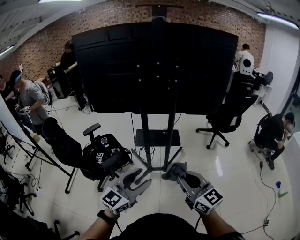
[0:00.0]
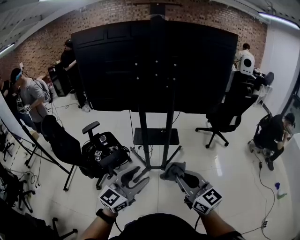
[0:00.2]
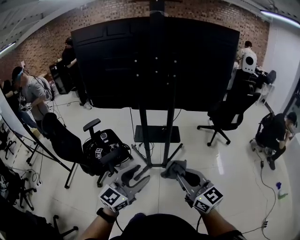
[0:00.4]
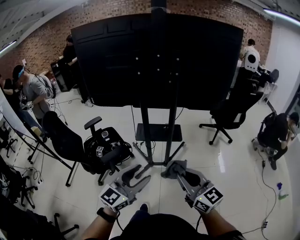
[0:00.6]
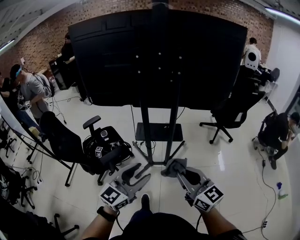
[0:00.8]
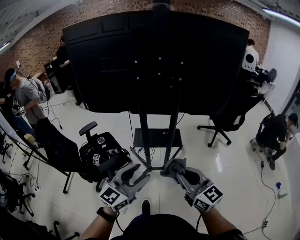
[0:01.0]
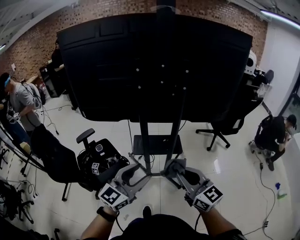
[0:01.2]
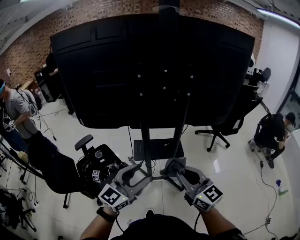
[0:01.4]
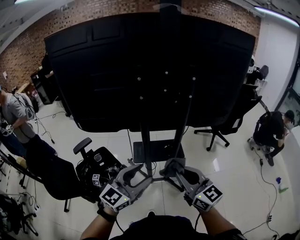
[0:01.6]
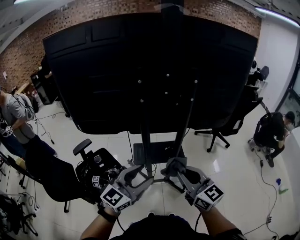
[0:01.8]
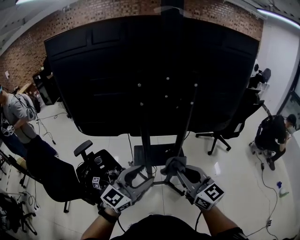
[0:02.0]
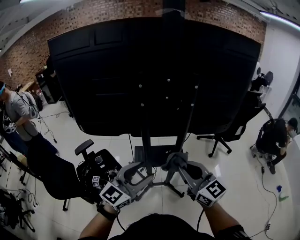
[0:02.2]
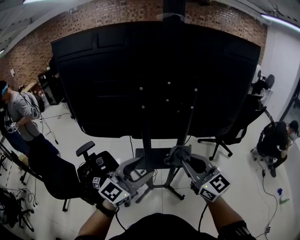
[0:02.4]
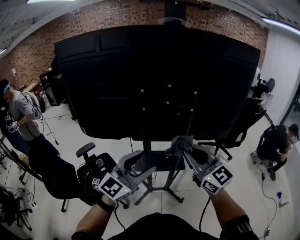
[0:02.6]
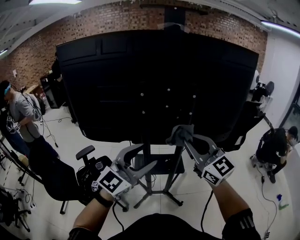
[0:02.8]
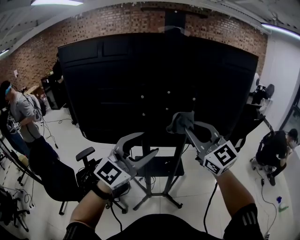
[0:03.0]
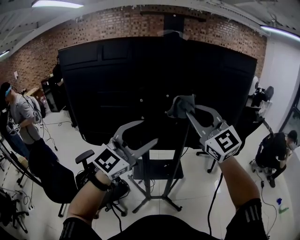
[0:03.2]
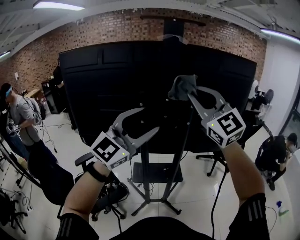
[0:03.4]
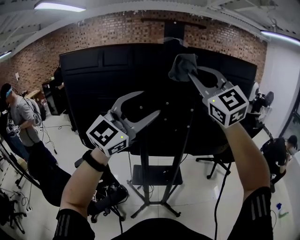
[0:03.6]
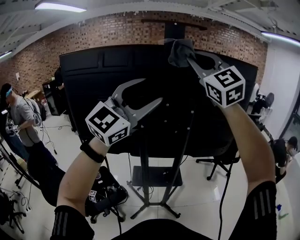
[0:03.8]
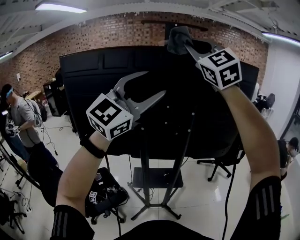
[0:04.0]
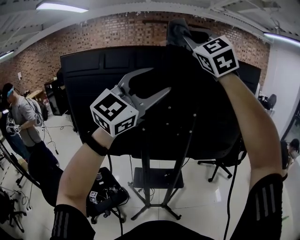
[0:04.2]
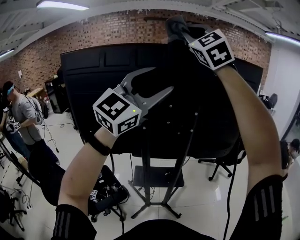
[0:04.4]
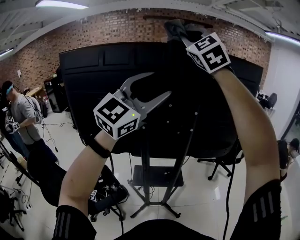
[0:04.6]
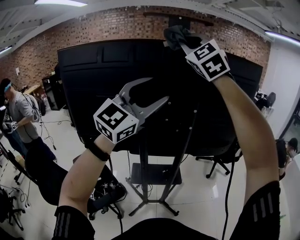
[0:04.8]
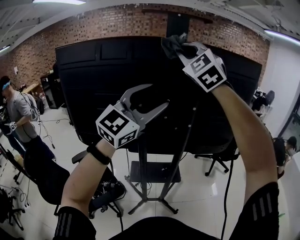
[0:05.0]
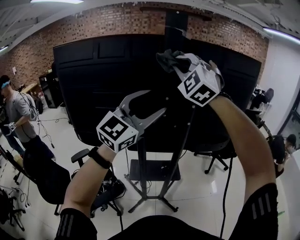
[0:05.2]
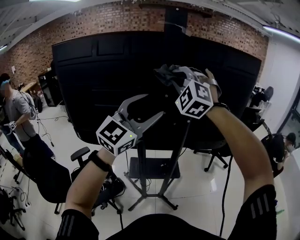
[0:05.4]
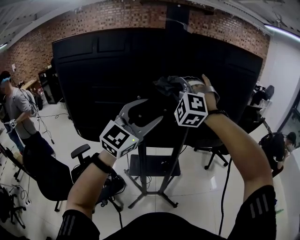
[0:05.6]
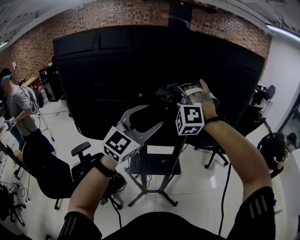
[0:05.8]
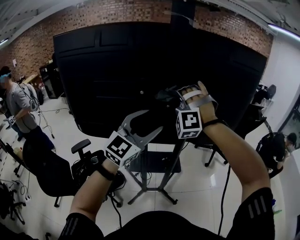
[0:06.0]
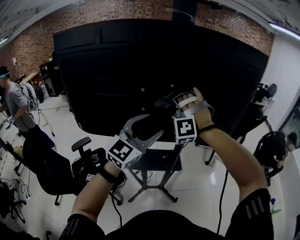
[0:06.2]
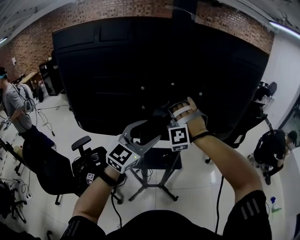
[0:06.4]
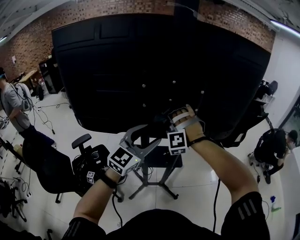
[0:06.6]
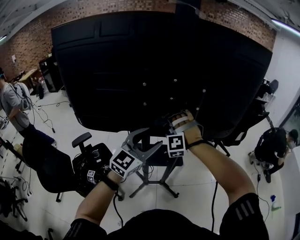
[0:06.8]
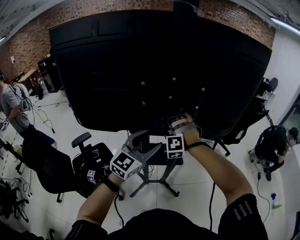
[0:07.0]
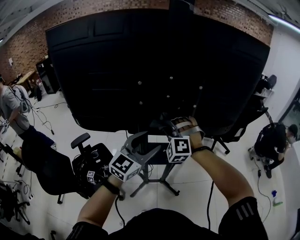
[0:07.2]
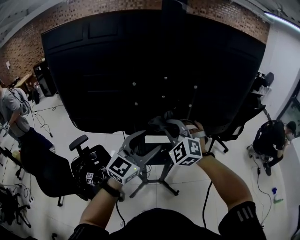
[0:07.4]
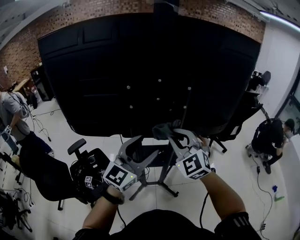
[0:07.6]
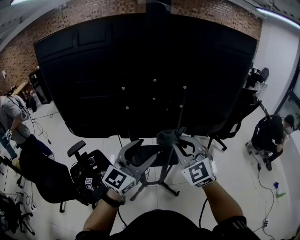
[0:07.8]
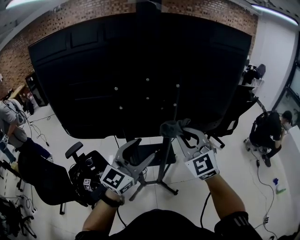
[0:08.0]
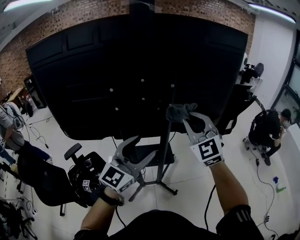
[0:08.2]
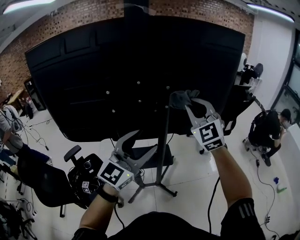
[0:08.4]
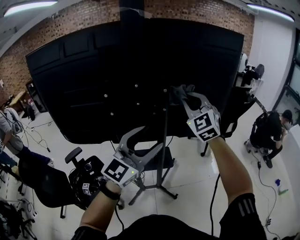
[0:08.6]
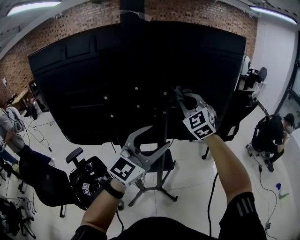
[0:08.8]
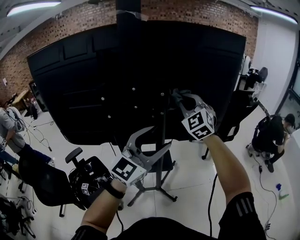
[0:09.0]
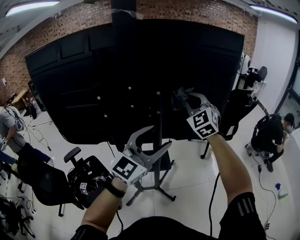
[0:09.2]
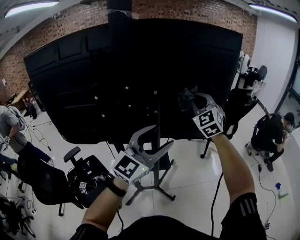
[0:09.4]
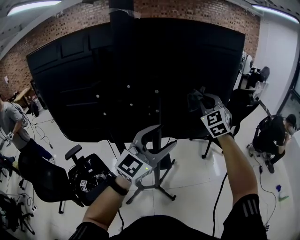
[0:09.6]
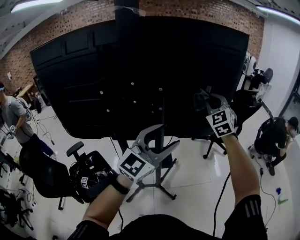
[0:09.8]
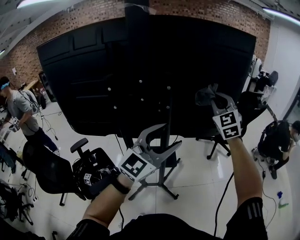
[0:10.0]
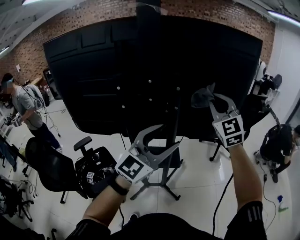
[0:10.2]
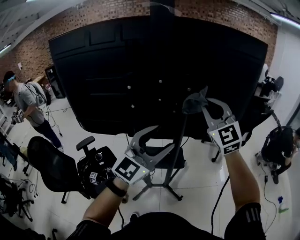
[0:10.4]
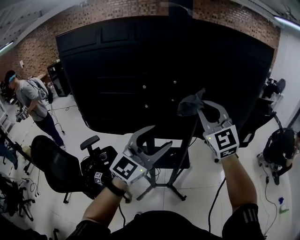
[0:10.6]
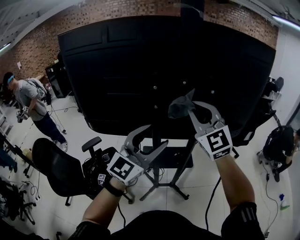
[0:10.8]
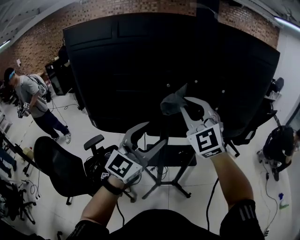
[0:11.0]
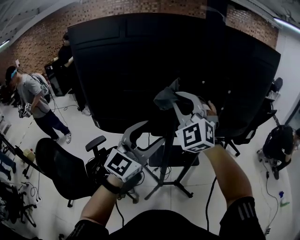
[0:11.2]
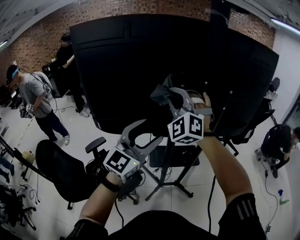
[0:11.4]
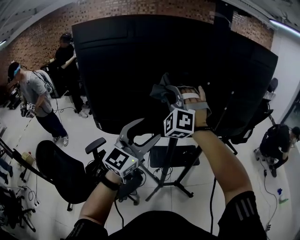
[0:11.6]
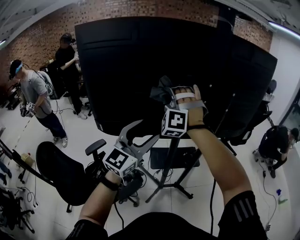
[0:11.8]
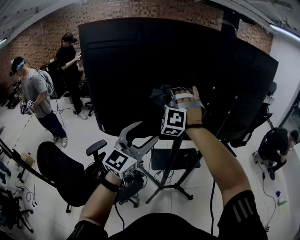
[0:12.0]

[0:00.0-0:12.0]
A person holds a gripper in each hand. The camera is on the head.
0:00.0 to 0:01.6: The grippers both shift forward by some 25 cm.
0:01.6 to 0:03.0: The left gripper goes about 20 cm upward, and changes its angle by some 30 degrees, while the right gripper heads upward and forward, covering approximately 25 cm, and swivels roughly 30 degrees.
0:03.0 to 0:04.4: The left gripper goes approximately 25 cm upward and forward. The right gripper heads upward and forward, covering about 35 cm, and rotates about 40 degrees.
0:04.4 to 0:06.0: The left gripper shifts some 20 cm downward, while the right gripper is displaced downward by about 35 cm, and twists approximately 50 degrees counterclockwise, seen from behind.
0:06.0 to 0:07.6: The right gripper heads backward, downward and to the right, covering approximately 15 cm, and rolls clockwise, seen from behind, by approximately 60 degrees. The left gripper heads downward, covering some 10 cm.
0:07.6 to 0:09.0: The right gripper heads forward, to the right and upward, covering roughly 20 cm; the left gripper travels to the right and upward by about 15 cm.
0:09.0 to 0:10.4: The right gripper heads backward, covering about 10 cm; the left gripper travels to the left by some 5 cm.
0:10.4 to 0:12.0: The grippers both shift to the left by some 35 cm. The right gripper rotates around the line of its fingers by approximately 60 degrees, counterclockwise from behind.

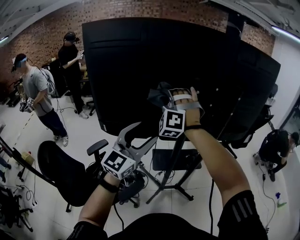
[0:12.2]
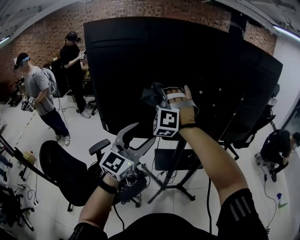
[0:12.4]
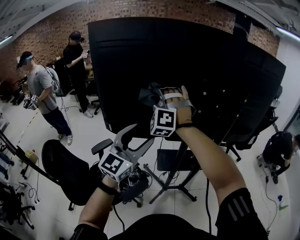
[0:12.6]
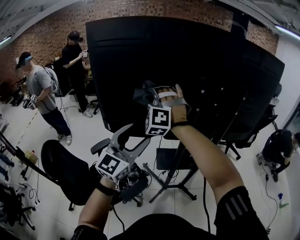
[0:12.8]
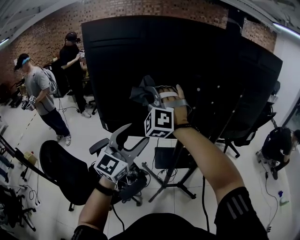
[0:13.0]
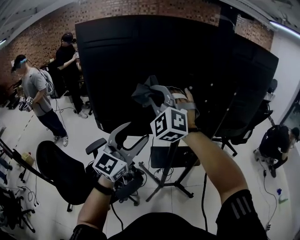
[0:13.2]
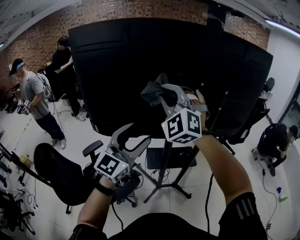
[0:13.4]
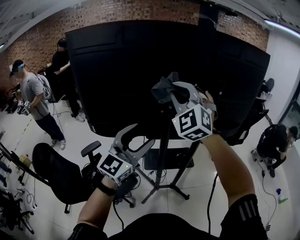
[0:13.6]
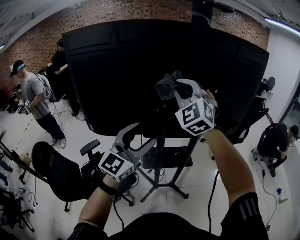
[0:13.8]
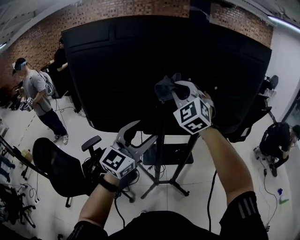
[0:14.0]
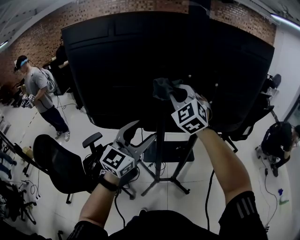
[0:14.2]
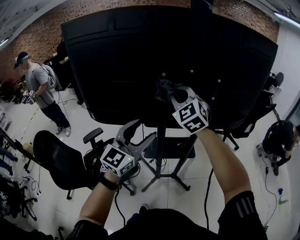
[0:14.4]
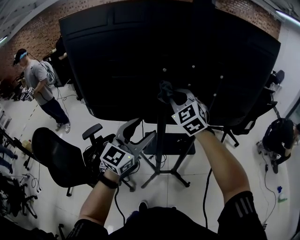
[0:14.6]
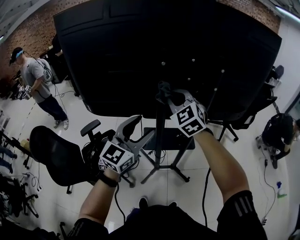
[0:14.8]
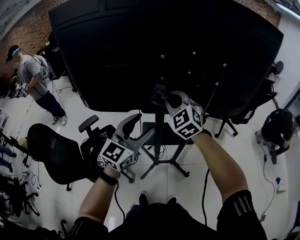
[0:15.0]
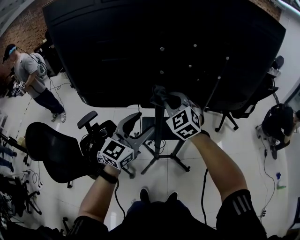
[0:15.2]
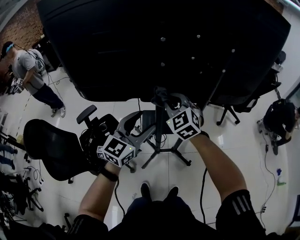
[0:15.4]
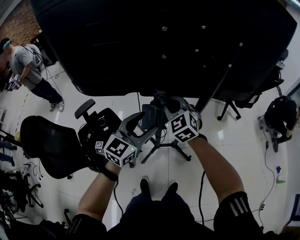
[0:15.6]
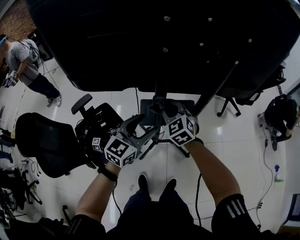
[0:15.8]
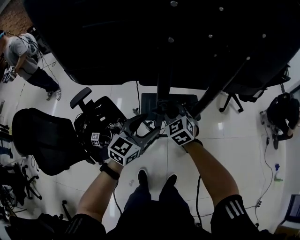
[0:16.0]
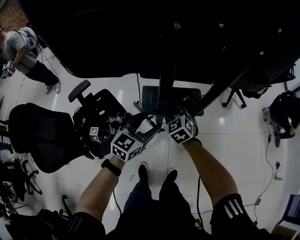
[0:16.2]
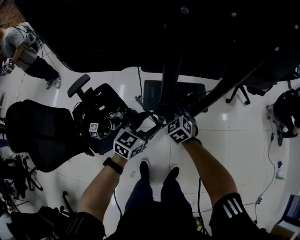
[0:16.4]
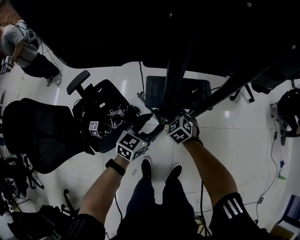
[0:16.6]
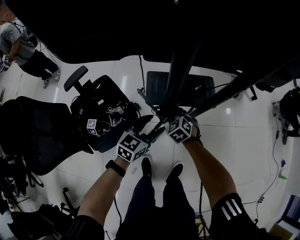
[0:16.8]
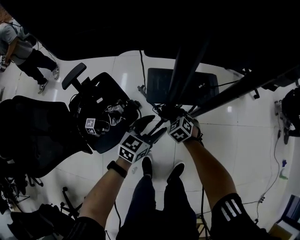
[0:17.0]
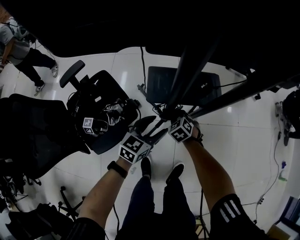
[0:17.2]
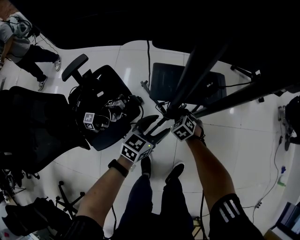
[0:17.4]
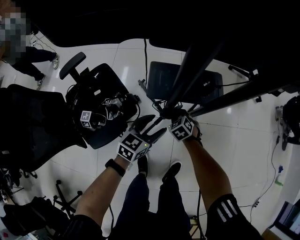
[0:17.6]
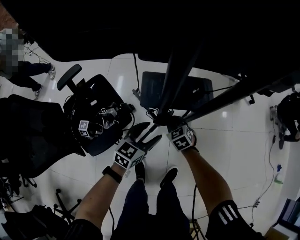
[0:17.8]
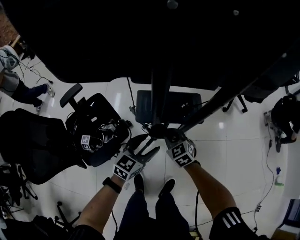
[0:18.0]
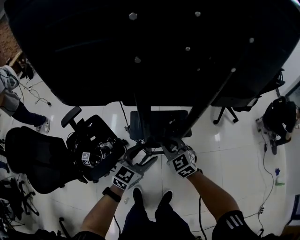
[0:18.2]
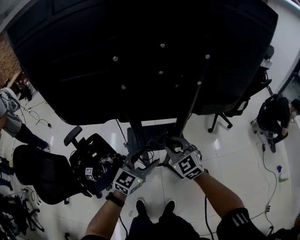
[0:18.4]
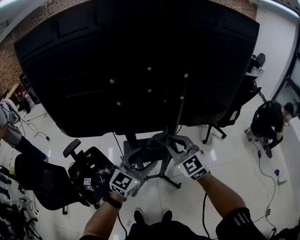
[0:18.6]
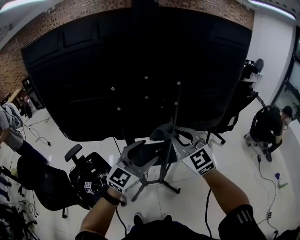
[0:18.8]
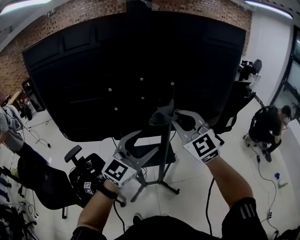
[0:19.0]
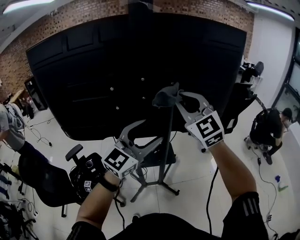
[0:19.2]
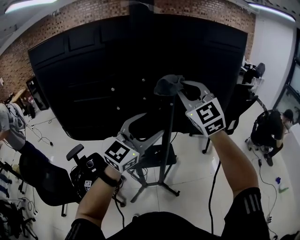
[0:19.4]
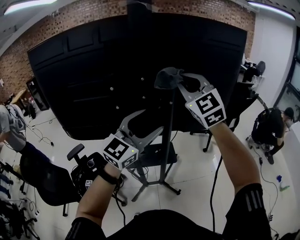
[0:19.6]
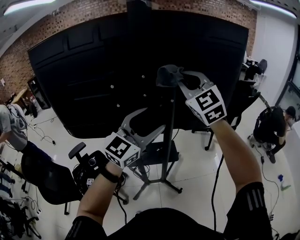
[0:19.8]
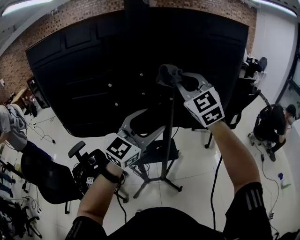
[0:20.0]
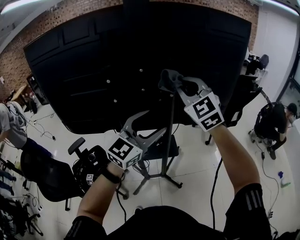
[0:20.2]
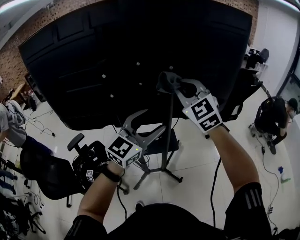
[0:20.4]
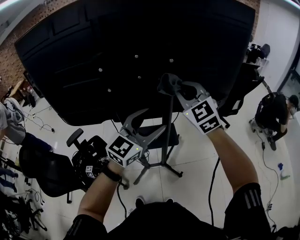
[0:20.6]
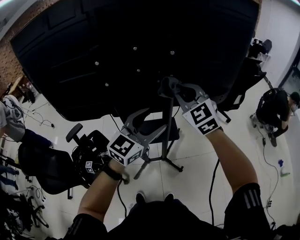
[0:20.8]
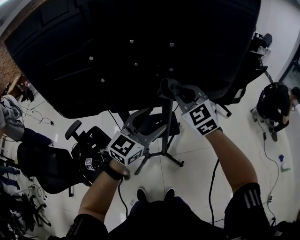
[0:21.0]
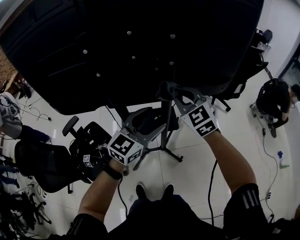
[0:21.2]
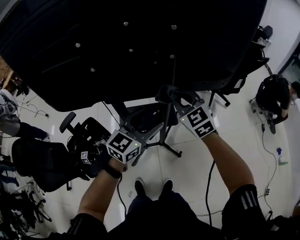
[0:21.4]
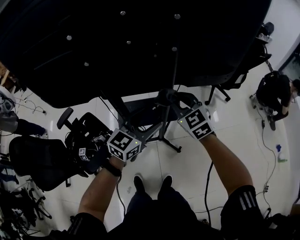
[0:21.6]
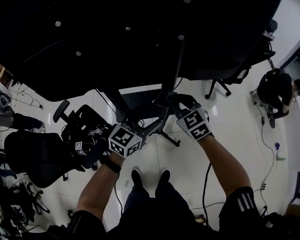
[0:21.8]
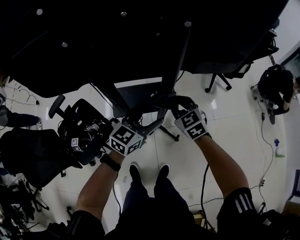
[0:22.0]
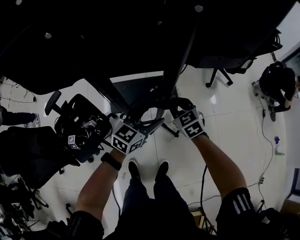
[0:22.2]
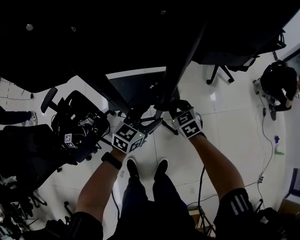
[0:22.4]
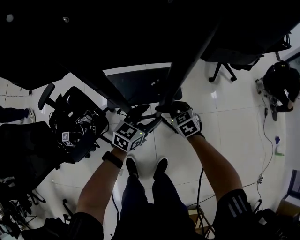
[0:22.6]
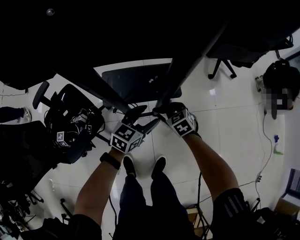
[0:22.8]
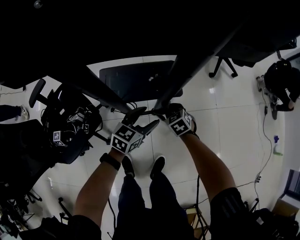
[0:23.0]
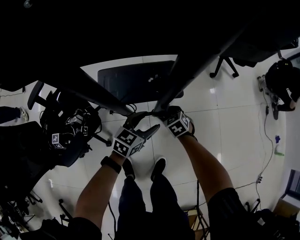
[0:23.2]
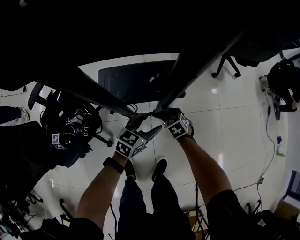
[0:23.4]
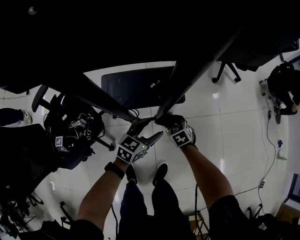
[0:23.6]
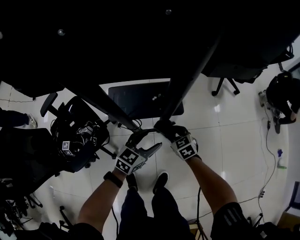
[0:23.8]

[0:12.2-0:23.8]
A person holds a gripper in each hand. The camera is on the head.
0:12.2 to 0:13.6: The left gripper travels to the right by some 10 cm, while the right gripper travels to the right and upward by roughly 15 cm, and changes its angle by about 30 degrees.
0:13.6 to 0:15.0: The right gripper is displaced downward by approximately 20 cm, and turns by some 30 degrees; the left gripper is displaced downward by some 10 cm.
0:15.0 to 0:16.6: Both grippers travel together downward, about 40 cm. The left gripper changes its angle by roughly 30 degrees; the right gripper tips its fingers downward by some 30 degrees.
0:16.6 to 0:18.0: The left gripper goes downward and returns, some 10 cm each way, while the right gripper reaches approximately 20 cm downward, then returns.
0:18.0 to 0:19.4: The grippers both shift upward by roughly 60 cm. The left gripper swivels some 40 degrees; the right gripper angles its fingers upward, by roughly 40 degrees.
0:19.4 to 0:21.0: Both grippers travel together downward, roughly 15 cm.
0:21.0 to 0:22.4: The two grippers go approximately 35 cm downward. The left gripper changes its angle by about 30 degrees, while the right gripper changes its angle by some 40 degrees.
0:22.4 to 0:23.8: Both grippers travel together downward, roughly 10 cm.
